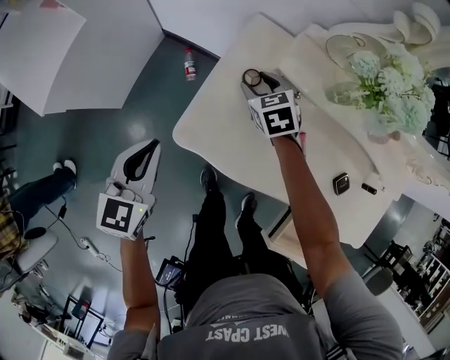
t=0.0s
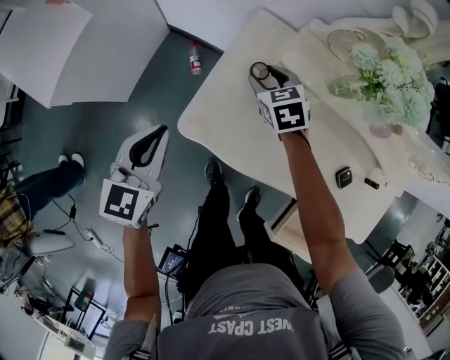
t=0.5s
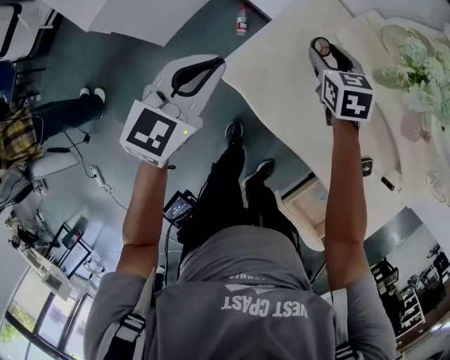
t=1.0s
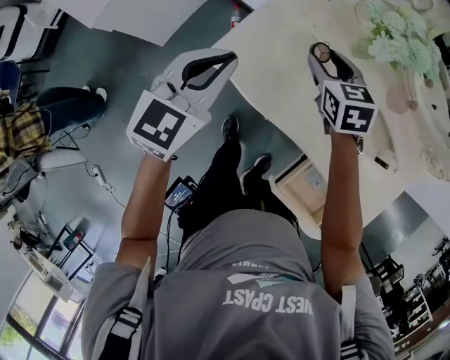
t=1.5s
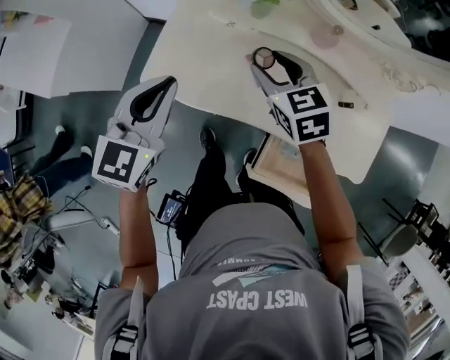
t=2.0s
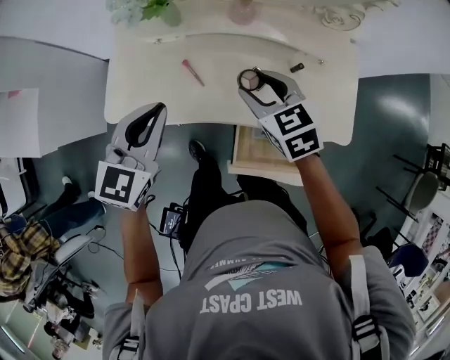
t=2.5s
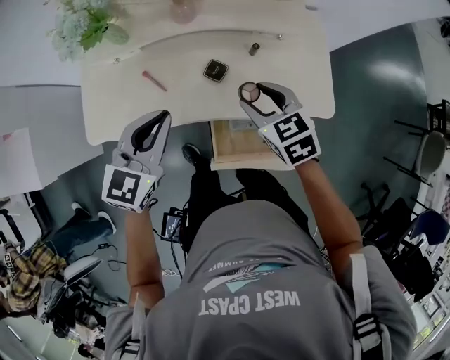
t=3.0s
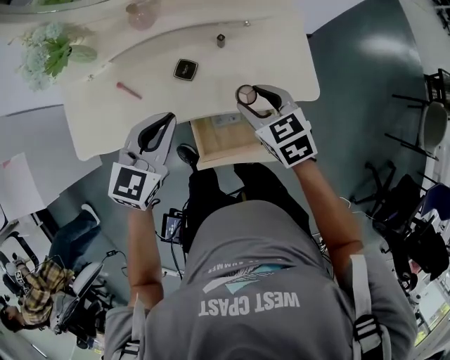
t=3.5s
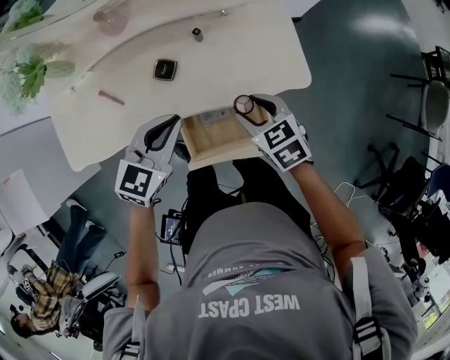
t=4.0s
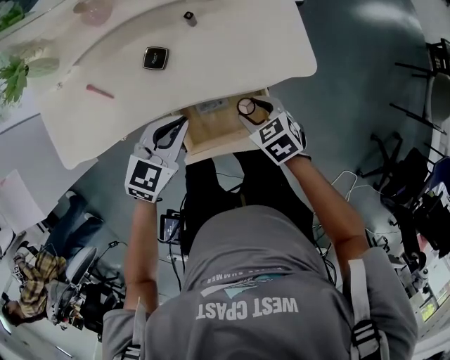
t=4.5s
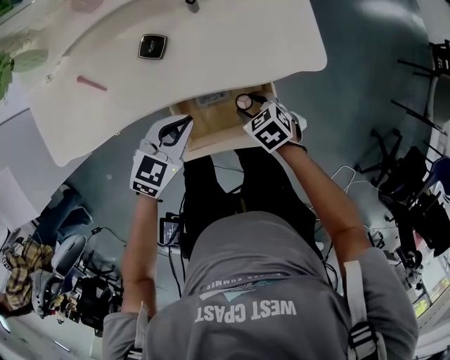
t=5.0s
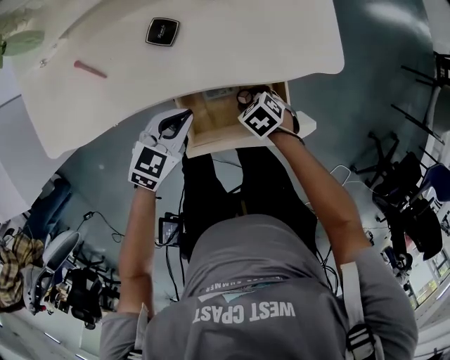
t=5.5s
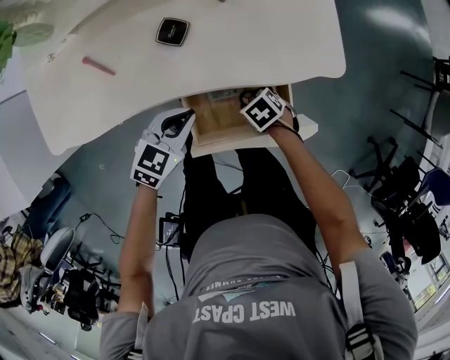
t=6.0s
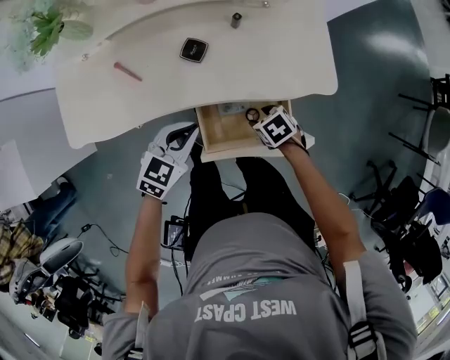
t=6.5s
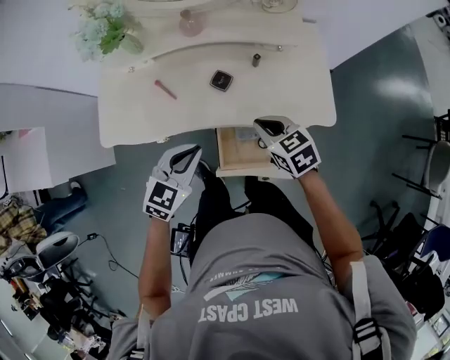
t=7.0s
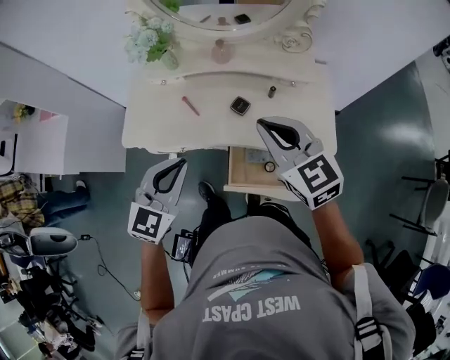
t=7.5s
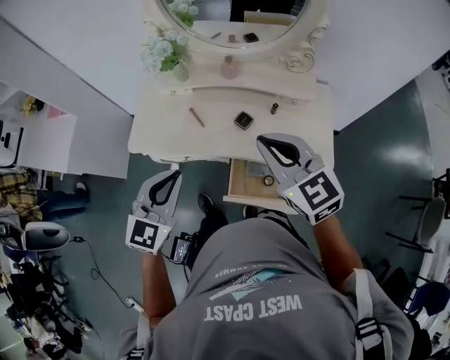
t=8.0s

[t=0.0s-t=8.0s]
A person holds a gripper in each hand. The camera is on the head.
t=0.0s to t=2.0s: The left gripper travels to the right, upward and backward by approximately 30 cm; the right gripper moves upward, backward and to the right, approximately 35 cm.
t=2.0s to t=4.0s: Both grippers are carried about 40 cm. The right gripper swivels approximately 30 degrees; the left gripper swivels approximately 40 degrees.
t=4.0s to t=6.0s: The grippers both shift downward by approximately 20 cm. The right gripper changes its angle by roughly 30 degrees.
t=6.0s to t=8.0s: Both grippers move upward, about 50 cm. The left gripper swivels approximately 40 degrees, while the right gripper angles its fingers upward, by about 60 degrees, and closes up.

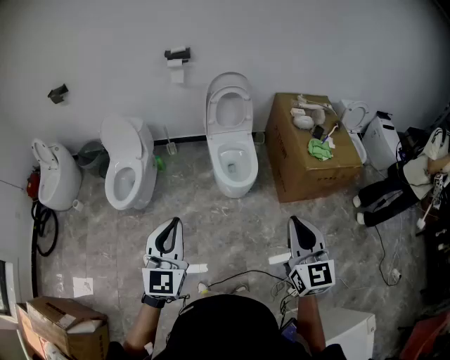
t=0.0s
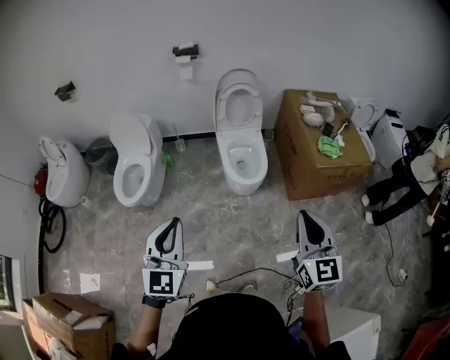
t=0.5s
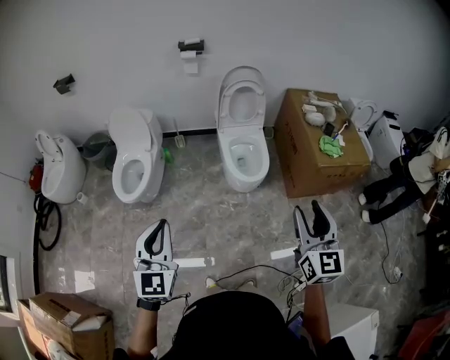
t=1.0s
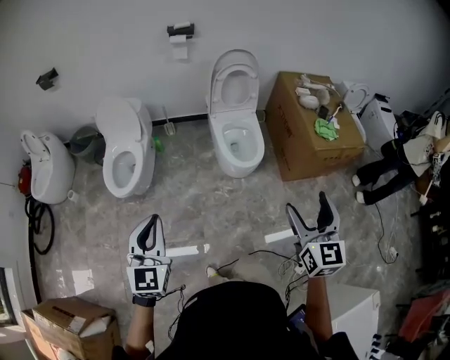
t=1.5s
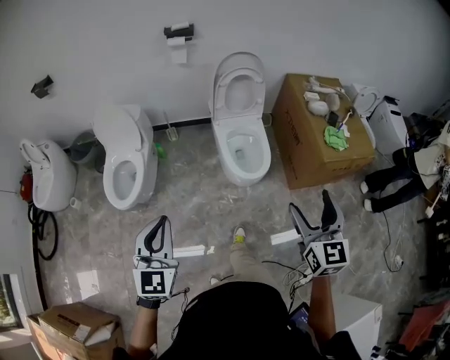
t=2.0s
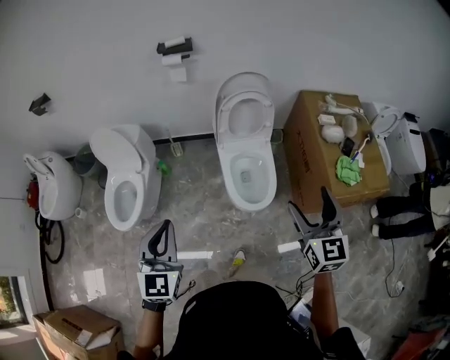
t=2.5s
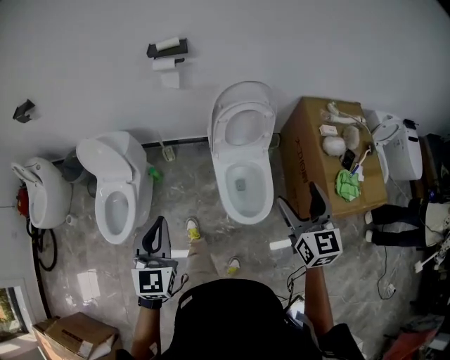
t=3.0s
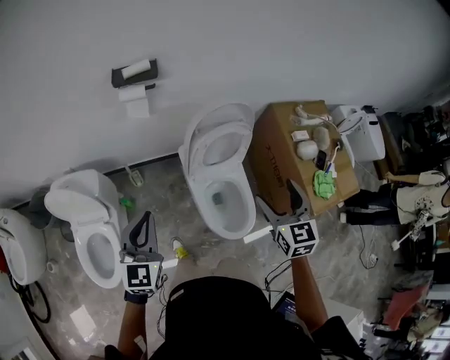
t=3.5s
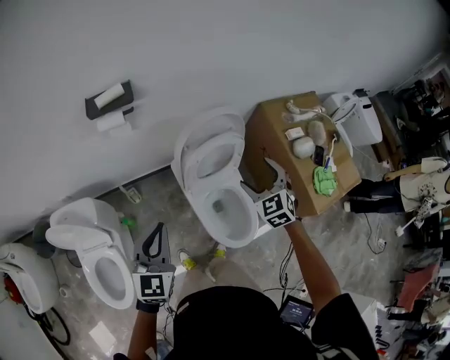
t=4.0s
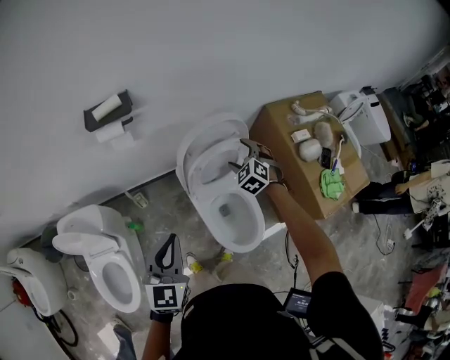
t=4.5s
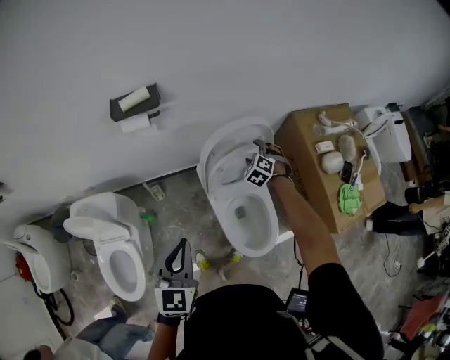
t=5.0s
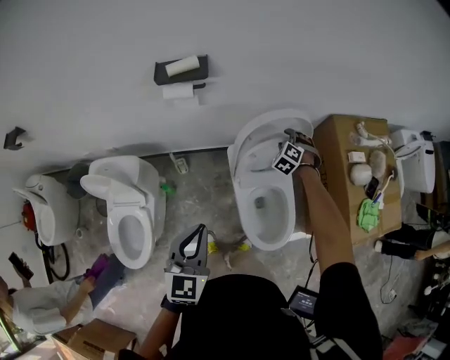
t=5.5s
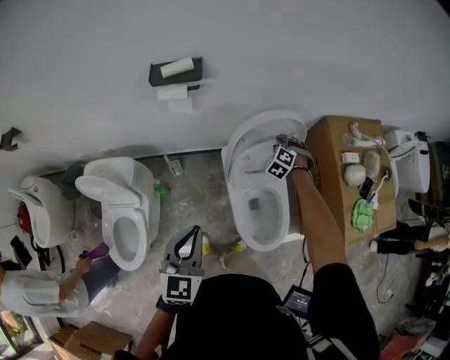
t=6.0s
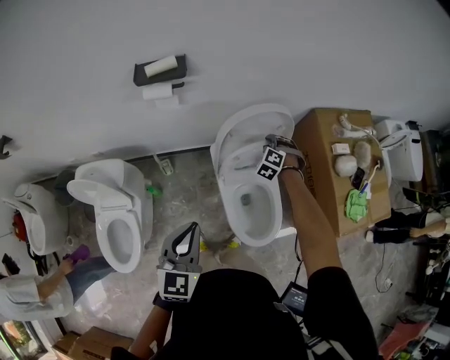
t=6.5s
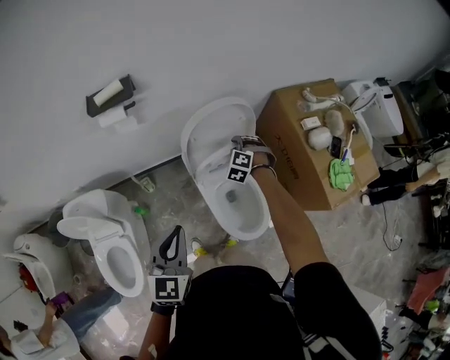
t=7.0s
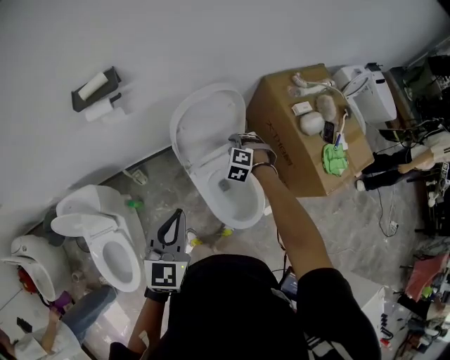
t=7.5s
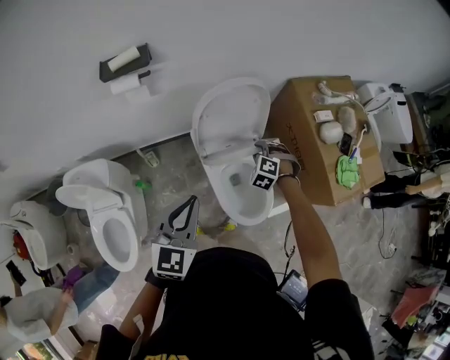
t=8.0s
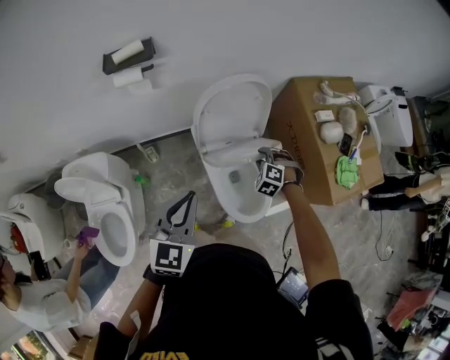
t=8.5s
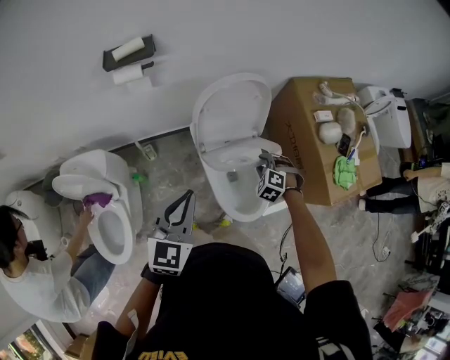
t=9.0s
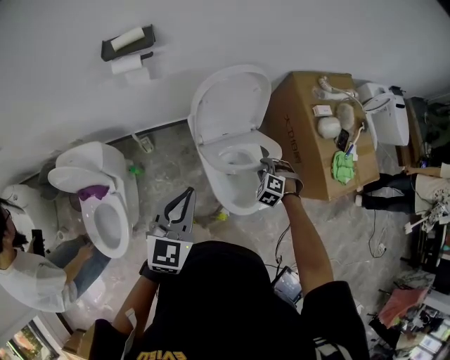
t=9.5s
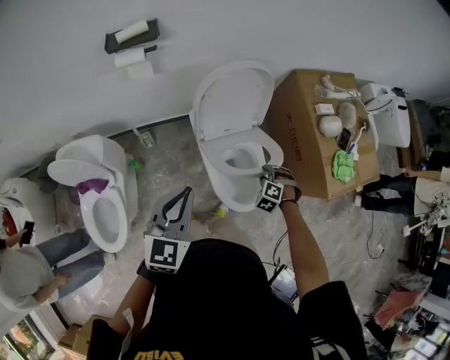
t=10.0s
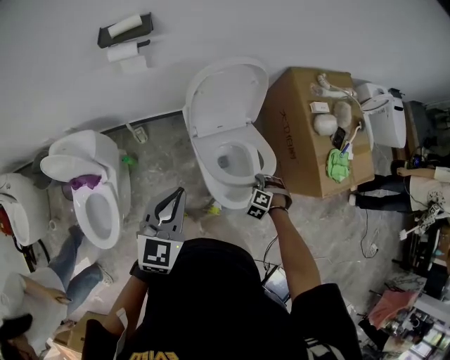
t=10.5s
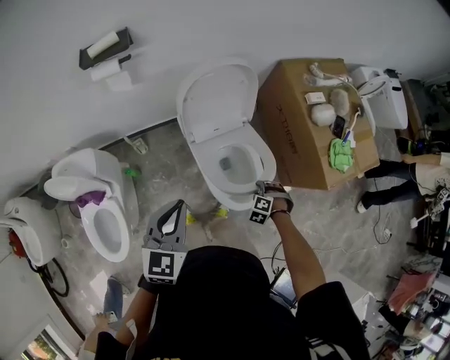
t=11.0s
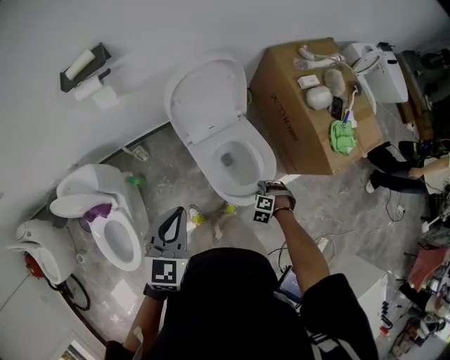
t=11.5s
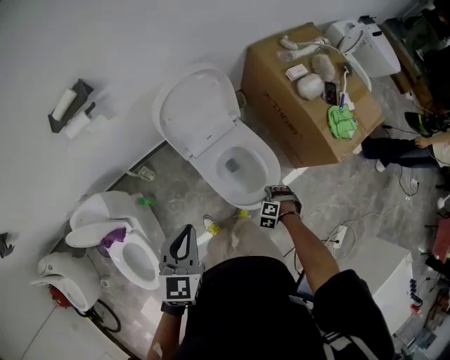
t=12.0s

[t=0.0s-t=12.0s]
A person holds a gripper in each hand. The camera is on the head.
t=0.0s to t=2.0s: The left gripper shifts about 15 cm to the left, forward and downward. Meanwhile the right gripper shifts about 15 cm forward, and opens.
t=2.0s to t=4.0s: The two grippers travel together, forward, approximately 60 cm. The right gripper swivels roughly 40 degrees.
t=4.0s to t=6.0s: The right gripper heads forward and downward, covering some 25 cm, changes its angle by about 40 degrees, and closes.
t=6.0s to t=8.0s: The right gripper goes approximately 15 cm backward and to the right; the left gripper goes approximately 5 cm to the right.
t=8.0s to t=10.0s: The right gripper is displaced backward, to the right and downward by about 15 cm.
t=10.0s to t=12.0s: The left gripper changes place by roughly 5 cm. Meanwhile the right gripper ends up roughly 15 cm from where it was.

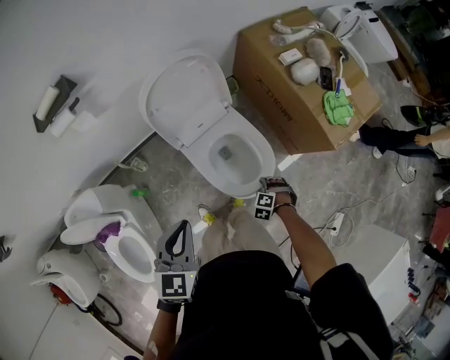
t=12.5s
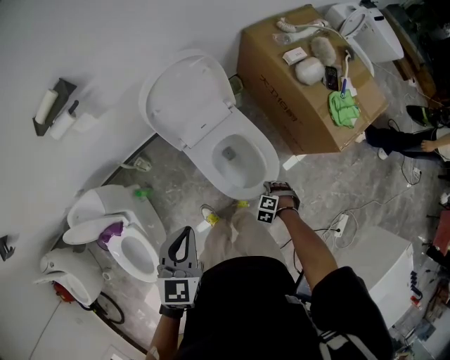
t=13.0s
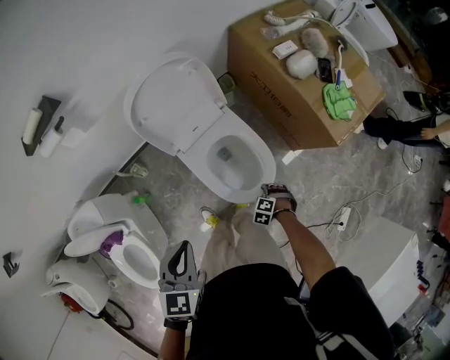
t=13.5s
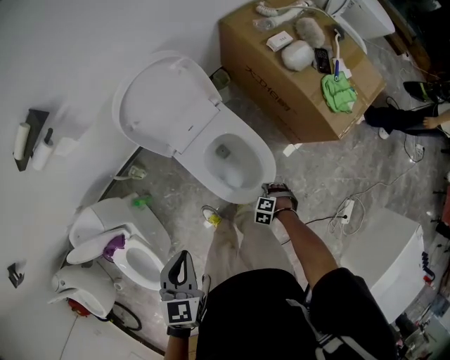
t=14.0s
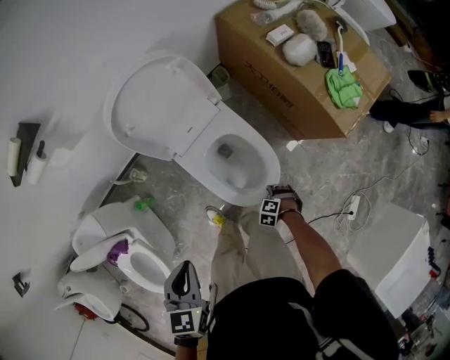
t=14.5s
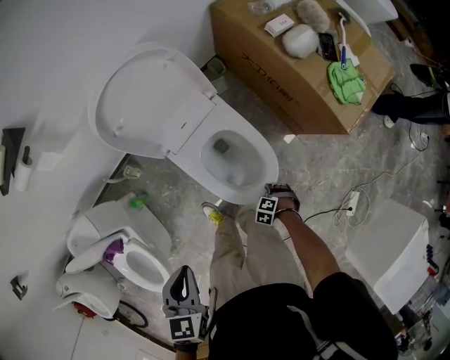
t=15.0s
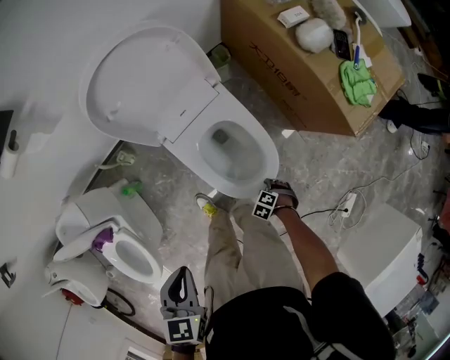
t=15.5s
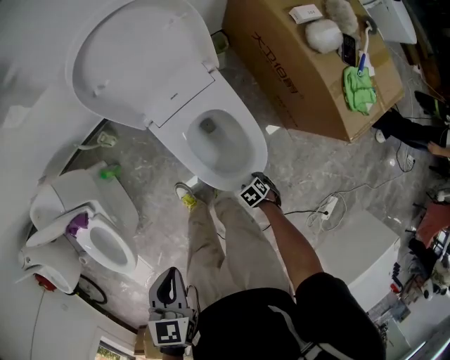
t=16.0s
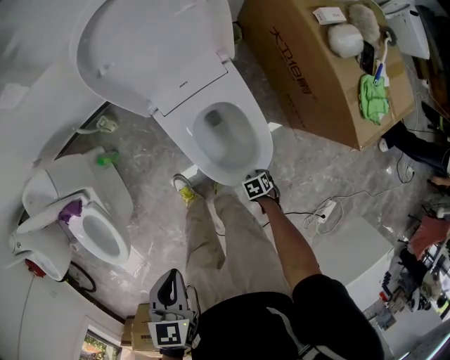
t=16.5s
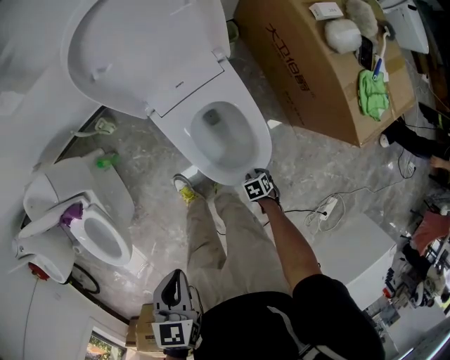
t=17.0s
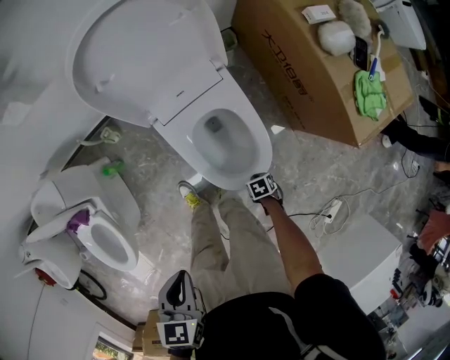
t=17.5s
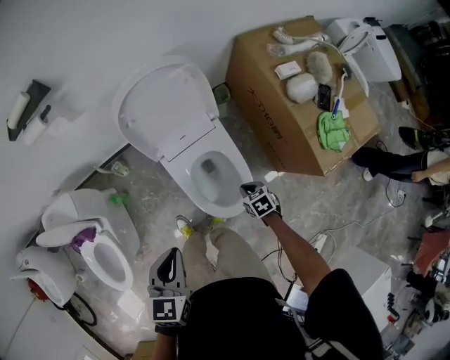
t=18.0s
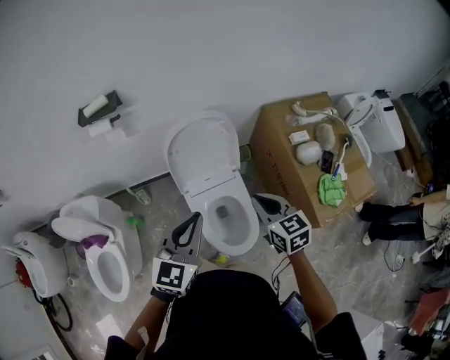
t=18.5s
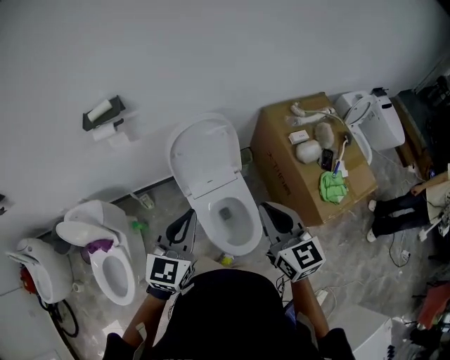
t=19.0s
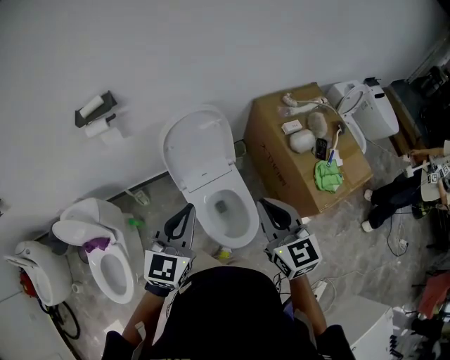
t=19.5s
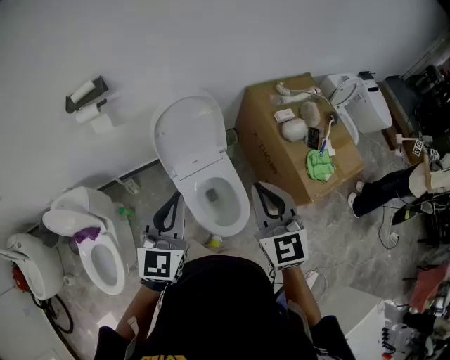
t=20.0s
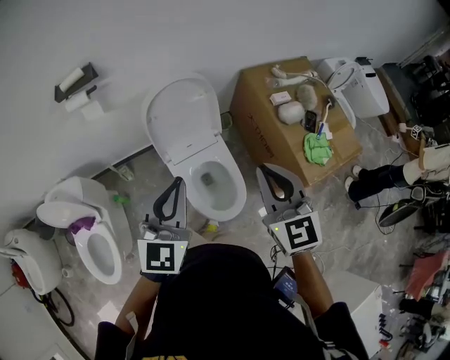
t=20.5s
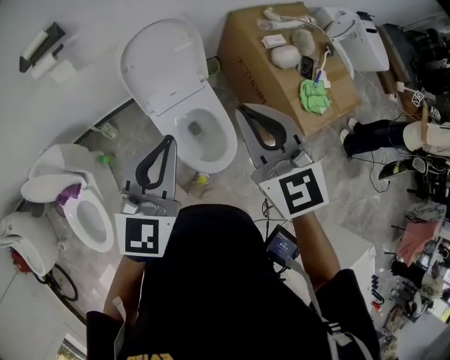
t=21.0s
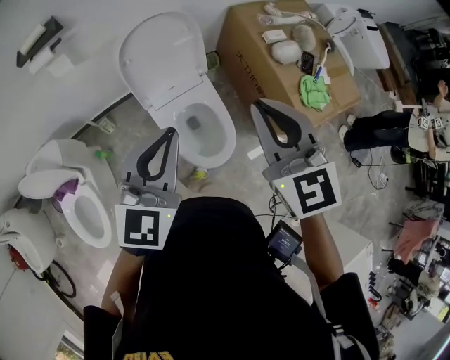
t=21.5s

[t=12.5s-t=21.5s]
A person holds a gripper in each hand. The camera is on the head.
t=12.5s to t=14.5s: The left gripper moves downward, some 5 cm. Meanwhile the right gripper moves downward, some 10 cm.
t=14.5s to t=17.0s: Both grippers move downward, roughly 10 cm. The right gripper rotates around the line of its fingers by about 50 degrees, clockwise from behind.
t=17.0s to t=19.5s: The right gripper is displaced upward by about 70 cm, and angles its fingers upward, by roughly 70 degrees, while the left gripper goes approximately 25 cm upward, and angles its fingers upward, by about 50 degrees.
t=19.5s to t=21.5s: The grippers move only a little.
